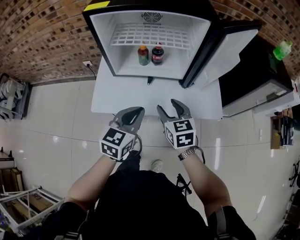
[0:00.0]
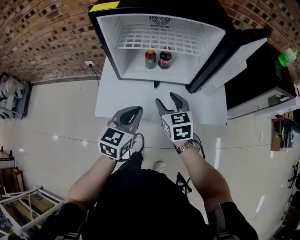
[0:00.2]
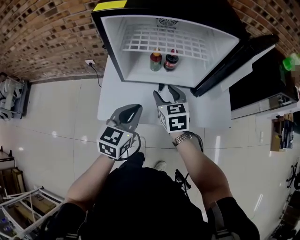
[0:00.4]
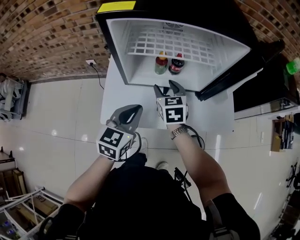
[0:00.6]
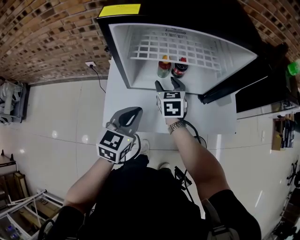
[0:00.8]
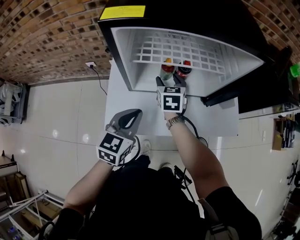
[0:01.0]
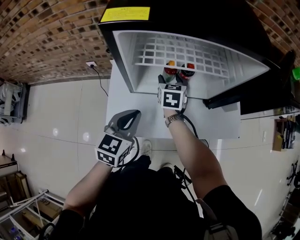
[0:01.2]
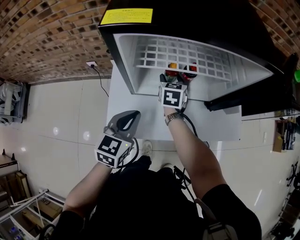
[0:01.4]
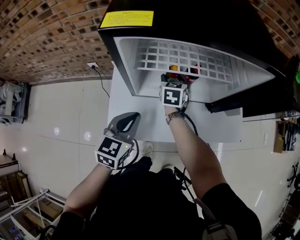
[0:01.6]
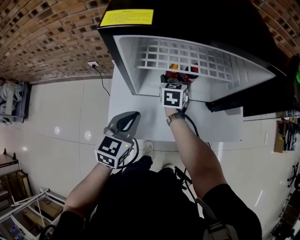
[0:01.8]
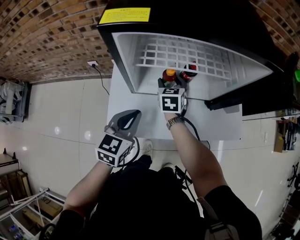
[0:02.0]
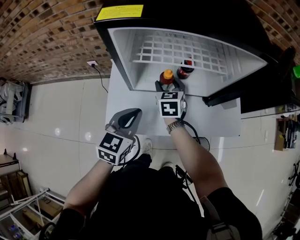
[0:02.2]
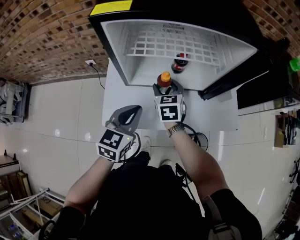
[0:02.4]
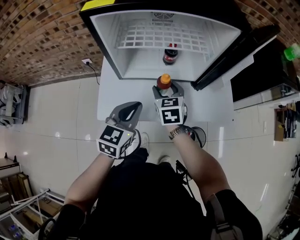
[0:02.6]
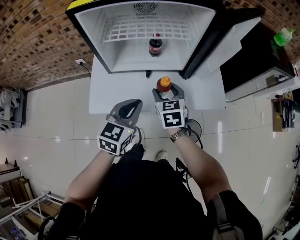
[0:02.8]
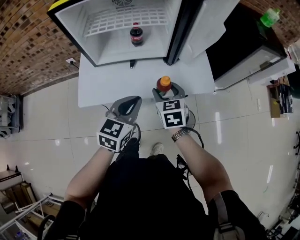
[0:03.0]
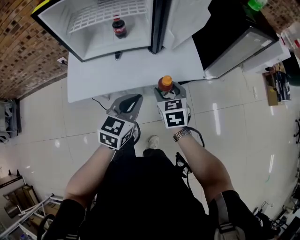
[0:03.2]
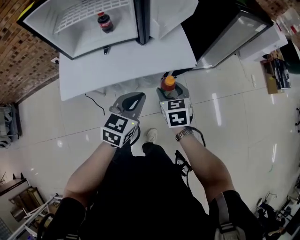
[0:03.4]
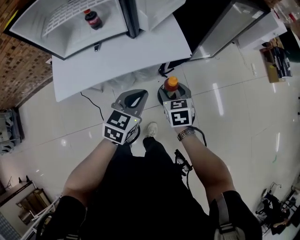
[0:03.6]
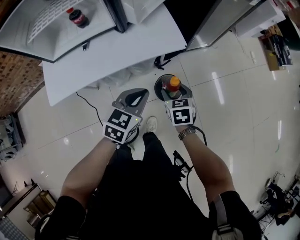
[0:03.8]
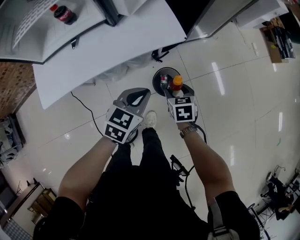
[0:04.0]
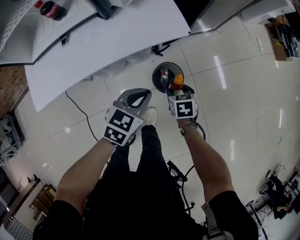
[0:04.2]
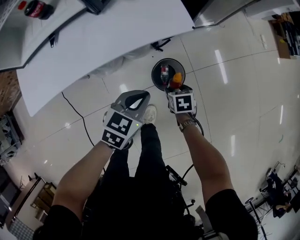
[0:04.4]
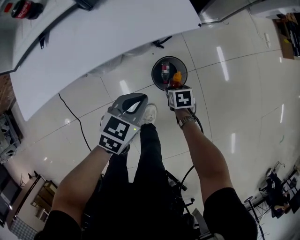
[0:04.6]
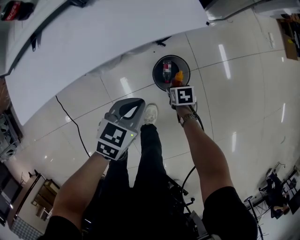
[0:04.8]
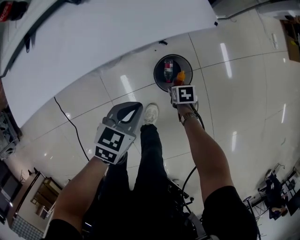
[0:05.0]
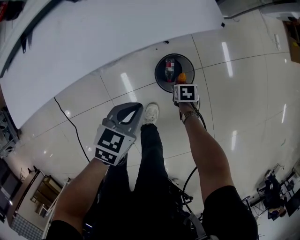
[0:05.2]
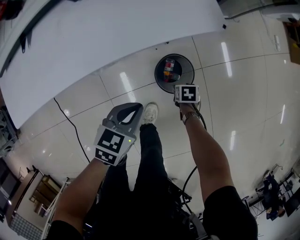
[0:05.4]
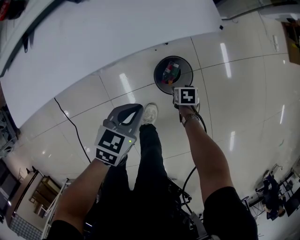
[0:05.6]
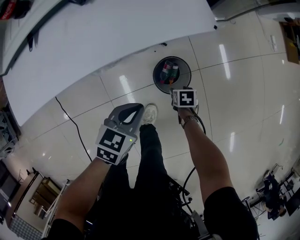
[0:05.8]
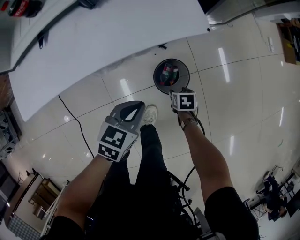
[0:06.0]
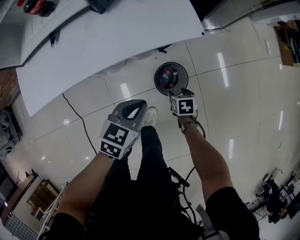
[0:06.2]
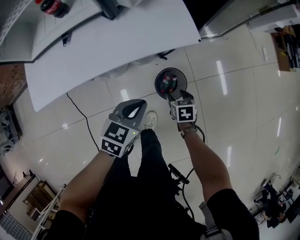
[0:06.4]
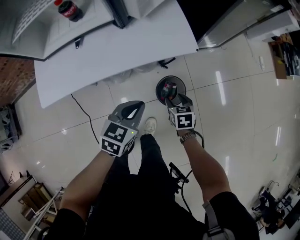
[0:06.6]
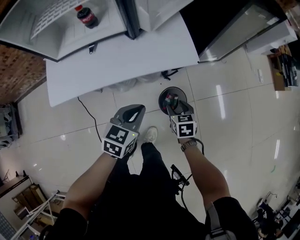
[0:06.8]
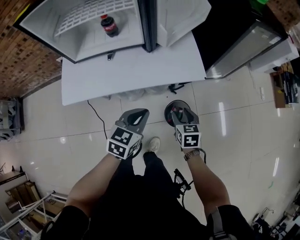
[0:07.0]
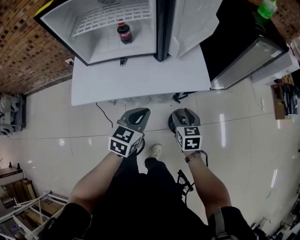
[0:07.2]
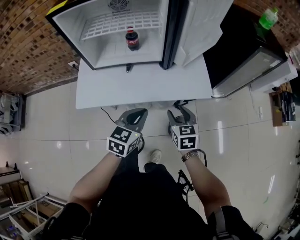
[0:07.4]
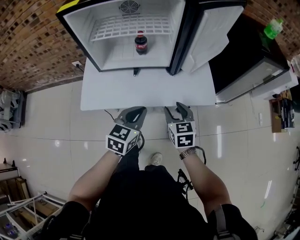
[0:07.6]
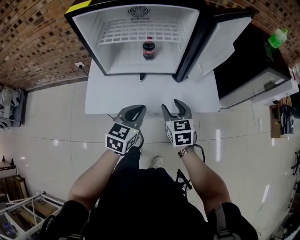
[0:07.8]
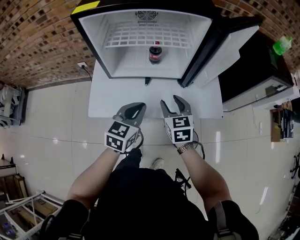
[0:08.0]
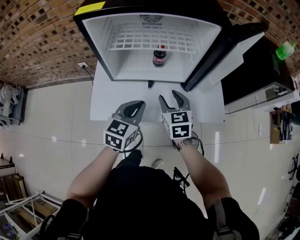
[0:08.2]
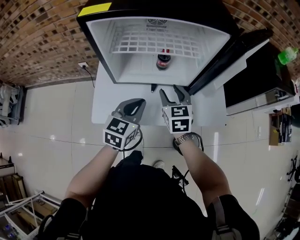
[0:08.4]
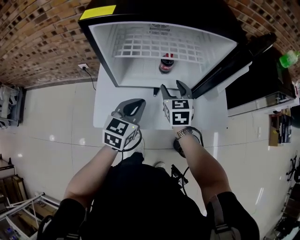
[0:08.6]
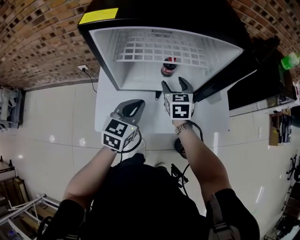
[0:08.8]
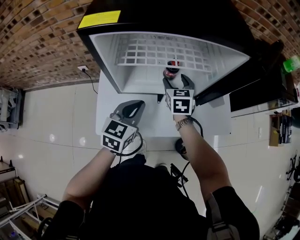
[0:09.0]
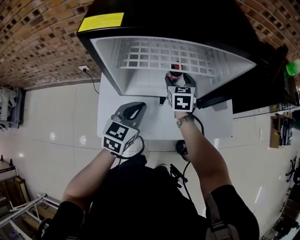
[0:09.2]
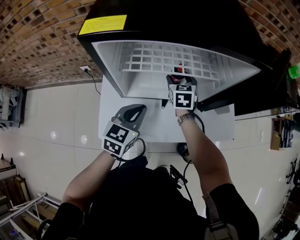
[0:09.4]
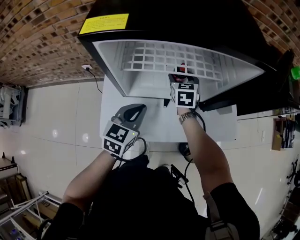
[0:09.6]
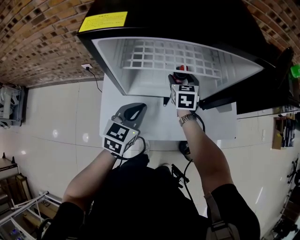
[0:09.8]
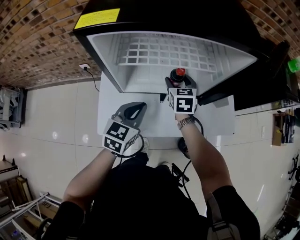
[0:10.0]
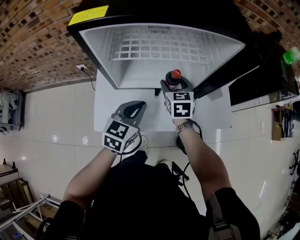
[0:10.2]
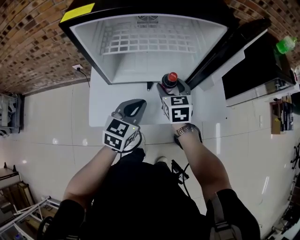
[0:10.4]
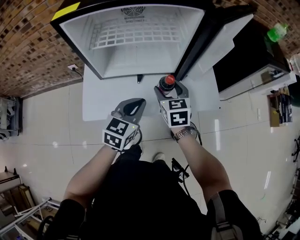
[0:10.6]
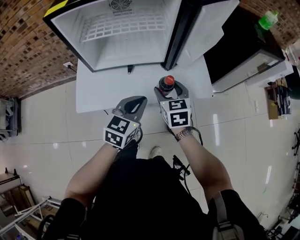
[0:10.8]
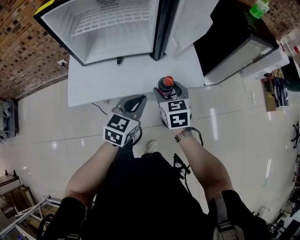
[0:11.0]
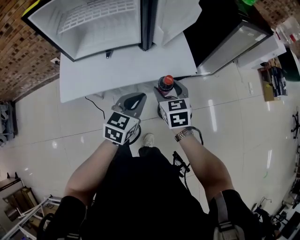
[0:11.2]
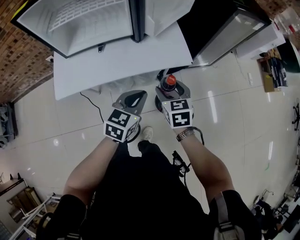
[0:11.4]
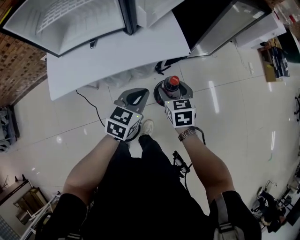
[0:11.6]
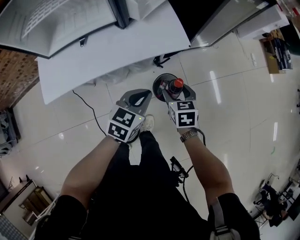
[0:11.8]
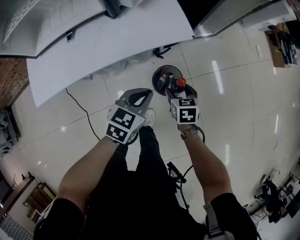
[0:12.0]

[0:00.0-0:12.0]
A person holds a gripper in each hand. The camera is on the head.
0:00.0 to 0:01.6: The left gripper shifts about 20 cm to the left and forward. Meanwhile the right gripper travels forward and to the left by roughly 30 cm, and changes its angle by about 20 degrees.
0:01.6 to 0:03.0: The right gripper goes approximately 35 cm backward and to the right, while the left gripper shifts approximately 25 cm to the right and backward.
0:03.0 to 0:04.4: The grippers both shift downward and to the right by some 40 cm. The left gripper rotates some 30 degrees. The right gripper points its fingers approximately 30 degrees further downward.
0:04.4 to 0:06.0: The right gripper travels downward by some 10 cm. The left gripper moves downward, some 5 cm.
0:06.0 to 0:07.6: The left gripper moves upward, about 25 cm, and rotates approximately 30 degrees. Meanwhile the right gripper shifts about 40 cm upward, and points its fingers some 40 degrees further upward.
0:07.6 to 0:09.0: The left gripper moves to the left and forward, approximately 20 cm; the right gripper heads forward and to the left, covering about 30 cm.
0:09.0 to 0:10.4: The left gripper shifts roughly 5 cm to the right. Meanwhile the right gripper shifts approximately 10 cm backward.
0:10.4 to 0:12.0: The right gripper travels to the right, downward and backward by approximately 50 cm, and turns by some 30 degrees. The left gripper heads to the right and downward, covering about 35 cm, and turns by approximately 30 degrees.

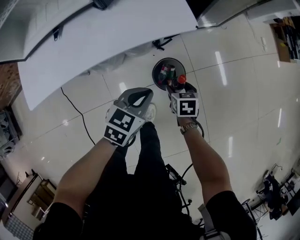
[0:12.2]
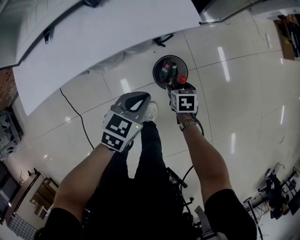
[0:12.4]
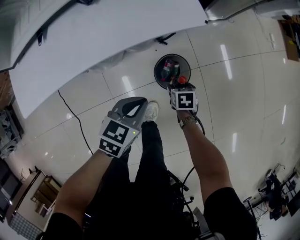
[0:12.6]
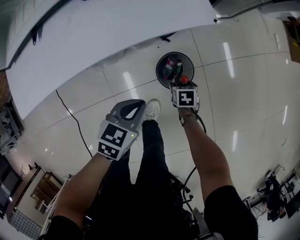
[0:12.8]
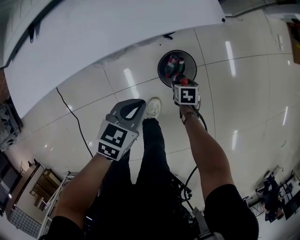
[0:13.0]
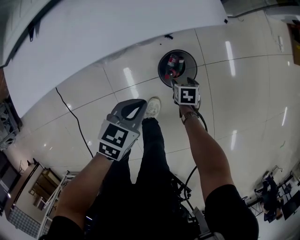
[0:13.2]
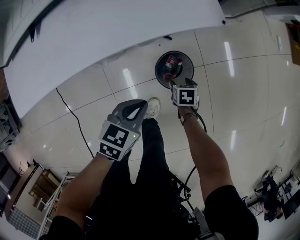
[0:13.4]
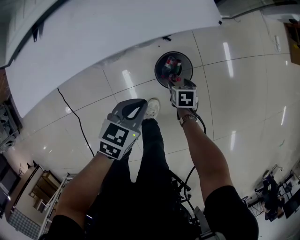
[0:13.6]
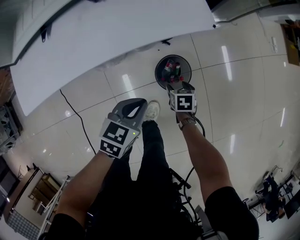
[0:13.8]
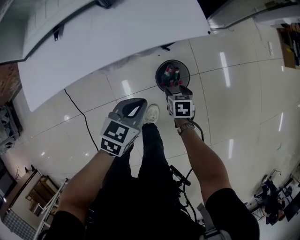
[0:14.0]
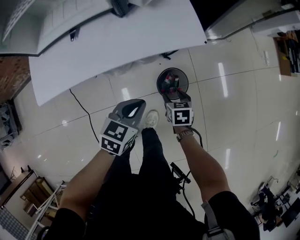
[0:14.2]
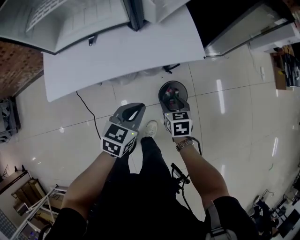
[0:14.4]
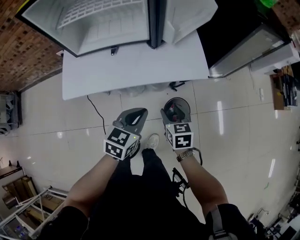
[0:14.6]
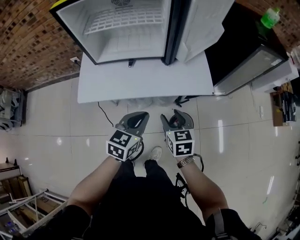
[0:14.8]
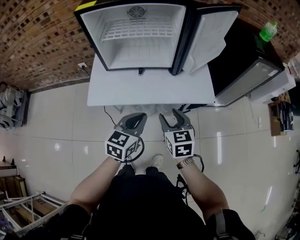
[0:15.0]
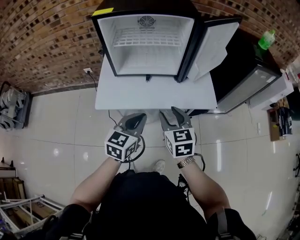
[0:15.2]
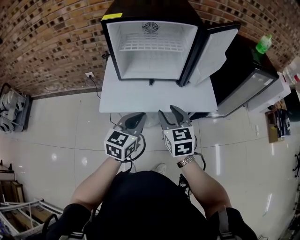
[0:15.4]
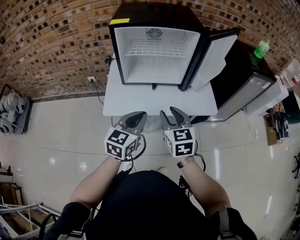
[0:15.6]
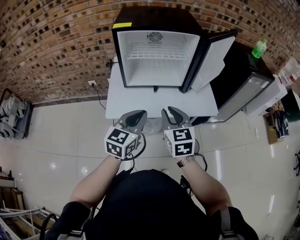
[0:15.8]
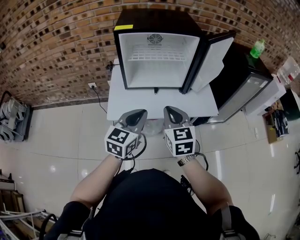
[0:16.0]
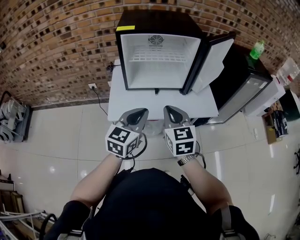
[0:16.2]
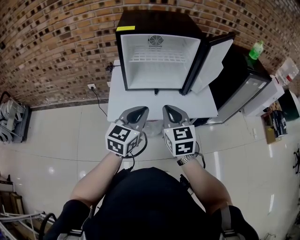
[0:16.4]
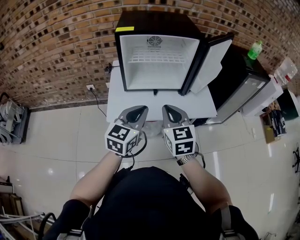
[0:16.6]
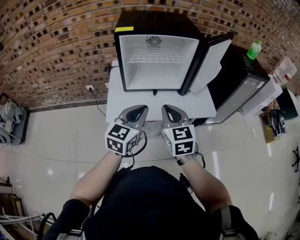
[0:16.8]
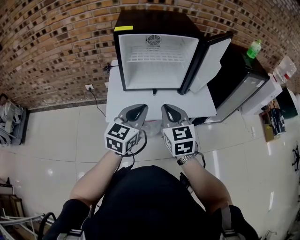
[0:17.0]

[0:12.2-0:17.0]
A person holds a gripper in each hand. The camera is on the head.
0:12.2 to 0:13.8: The right gripper shifts approximately 10 cm downward; the left gripper goes some 5 cm downward.
0:13.8 to 0:15.4: The grippers both shift upward and to the left by some 50 cm. The right gripper angles its fingers upward, by about 50 degrees. The left gripper turns by some 40 degrees.
0:15.4 to 0:17.0: Both grippers move upward and to the left, some 10 cm. The right gripper closes up.

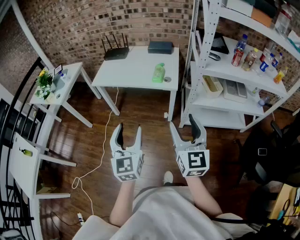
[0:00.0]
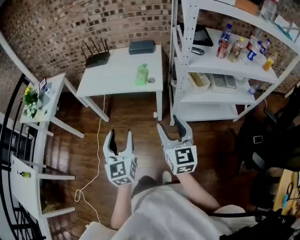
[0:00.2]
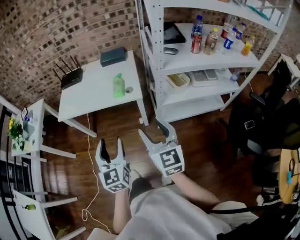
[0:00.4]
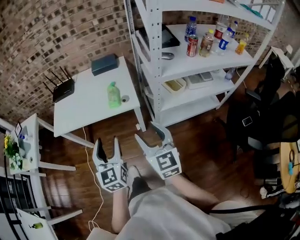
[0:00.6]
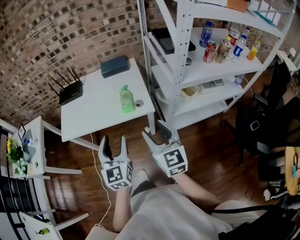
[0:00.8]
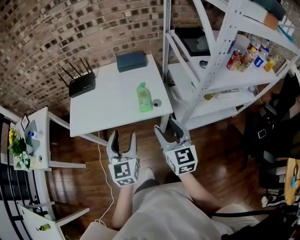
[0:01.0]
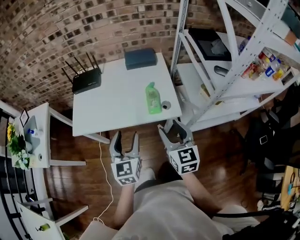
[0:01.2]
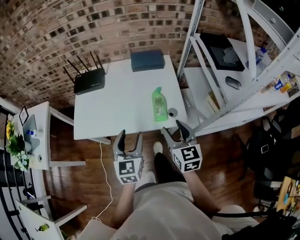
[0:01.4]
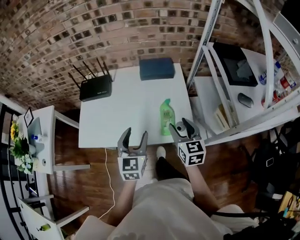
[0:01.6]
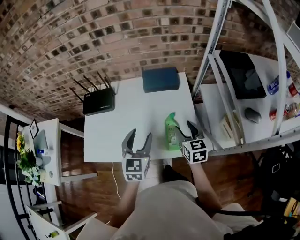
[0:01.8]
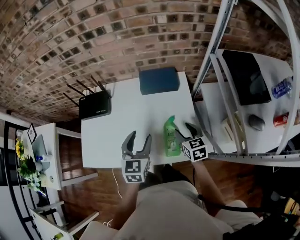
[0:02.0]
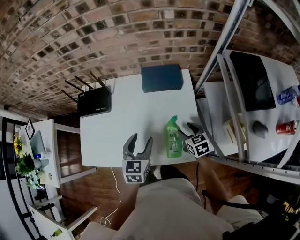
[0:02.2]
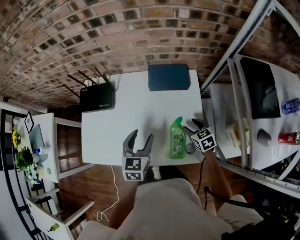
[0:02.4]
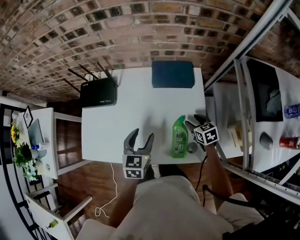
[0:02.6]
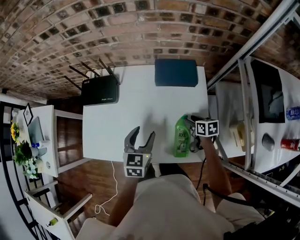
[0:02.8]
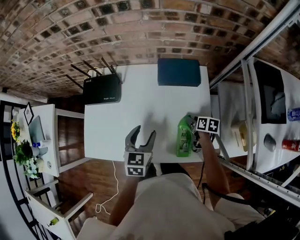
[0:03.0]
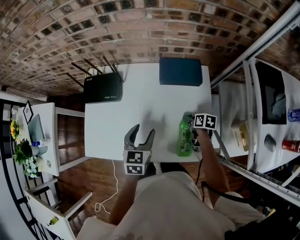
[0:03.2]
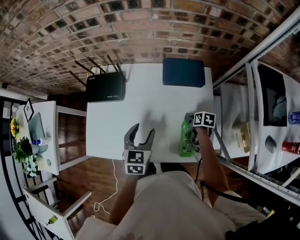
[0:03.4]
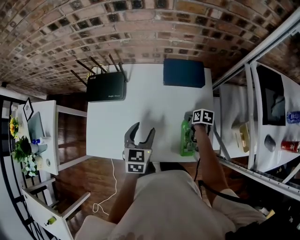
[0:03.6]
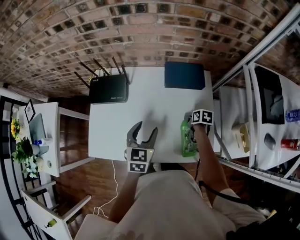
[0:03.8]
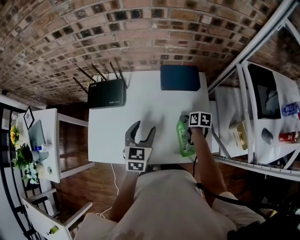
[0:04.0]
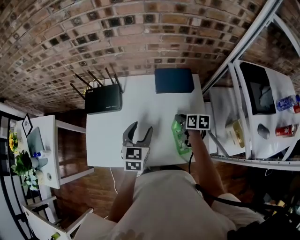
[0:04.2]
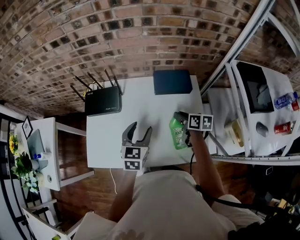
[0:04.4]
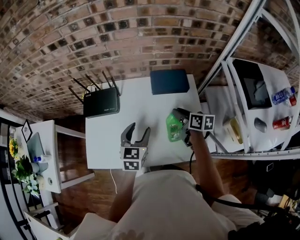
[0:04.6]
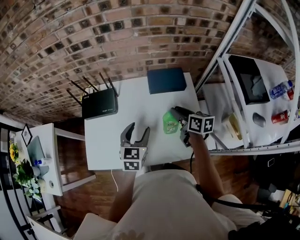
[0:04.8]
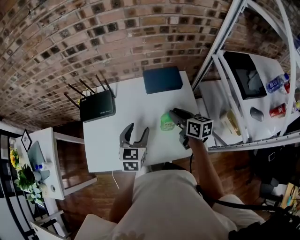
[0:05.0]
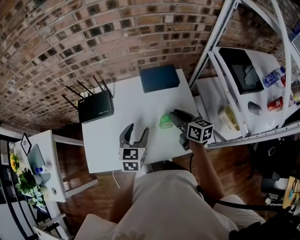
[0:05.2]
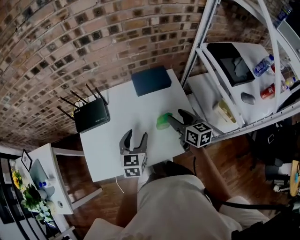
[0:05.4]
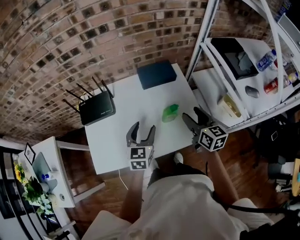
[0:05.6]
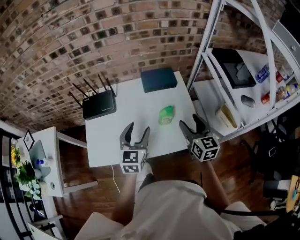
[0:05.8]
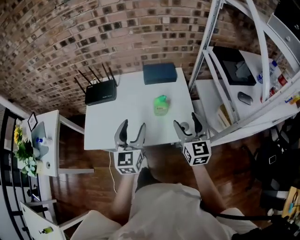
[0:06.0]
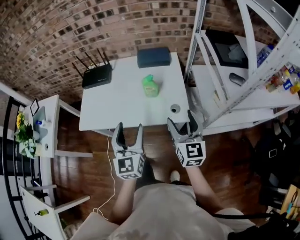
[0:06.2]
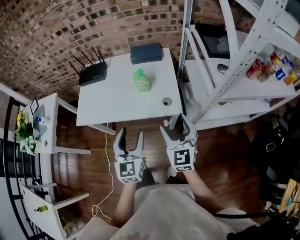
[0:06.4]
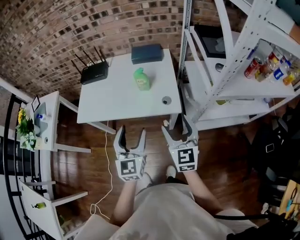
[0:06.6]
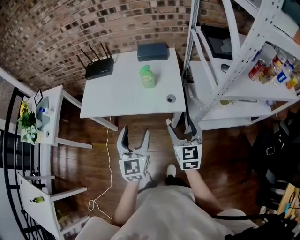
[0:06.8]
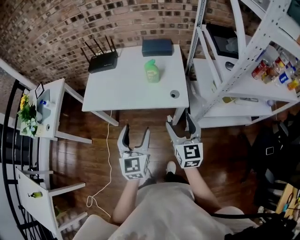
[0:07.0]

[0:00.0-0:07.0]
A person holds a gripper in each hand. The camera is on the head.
0:00.0 to 0:01.4: Both grippers are carried forward, some 50 cm.
0:01.4 to 0:02.8: The right gripper goes about 40 cm forward and downward, and changes its angle by about 50 degrees. The left gripper moves forward, some 25 cm.
0:02.8 to 0:04.2: The right gripper shifts about 10 cm to the left and upward, while the left gripper ends up approximately 5 cm from where it was.
0:04.2 to 0:05.6: The right gripper heads upward and backward, covering some 20 cm, turns by some 40 degrees, and opens its fingers, while the left gripper shifts about 5 cm backward.
0:05.6 to 0:07.0: The grippers both shift backward by about 35 cm. The left gripper swivels roughly 30 degrees.
